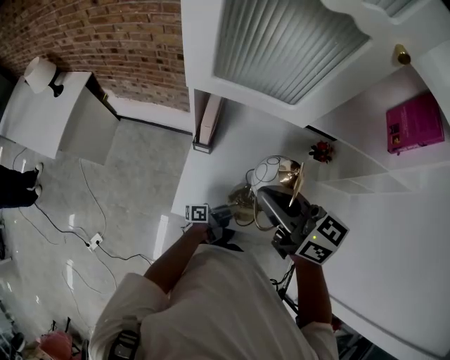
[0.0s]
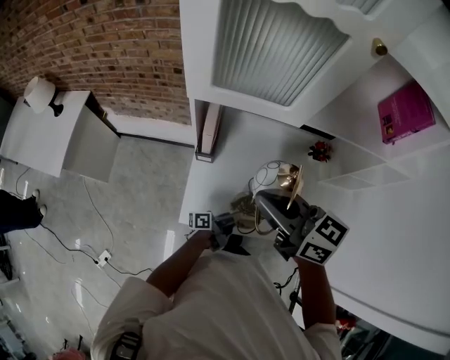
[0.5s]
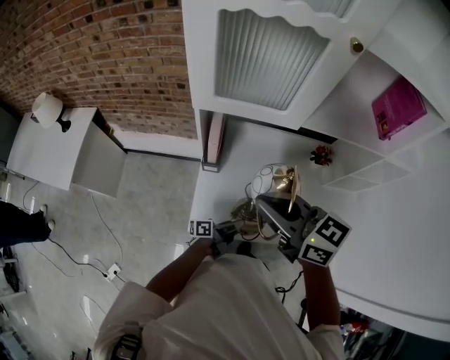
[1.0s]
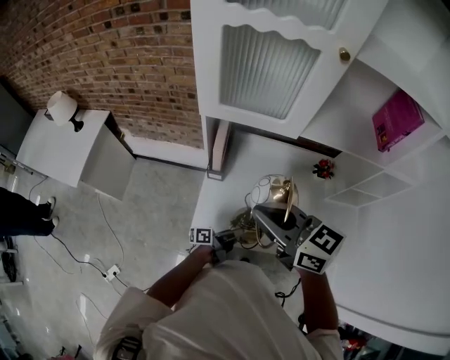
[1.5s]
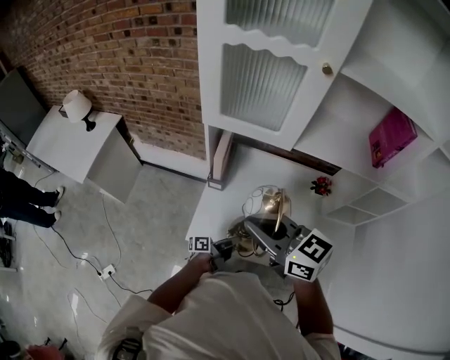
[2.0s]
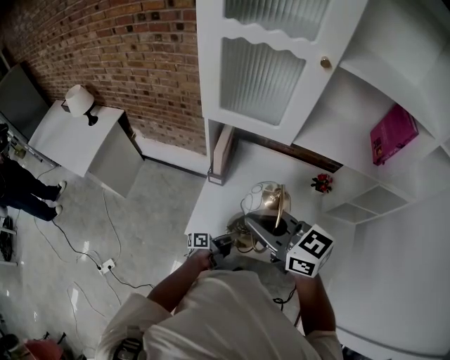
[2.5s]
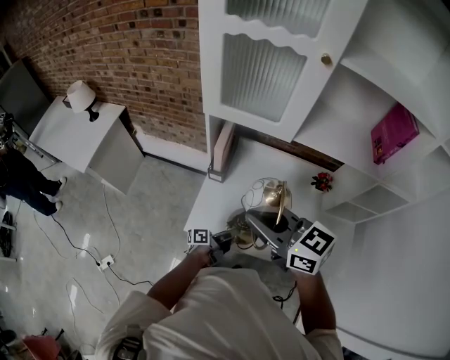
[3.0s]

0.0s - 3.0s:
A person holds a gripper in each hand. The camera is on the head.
0.0s - 1.5s: The left gripper shifts by some 5 cm; the right gripper moves backward, approximately 5 cm.
1.5s - 3.0s: The grippers stay close to where they were, moving slightly.

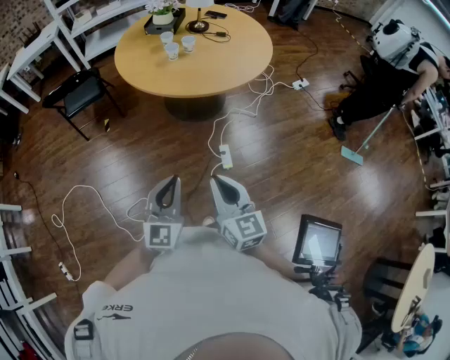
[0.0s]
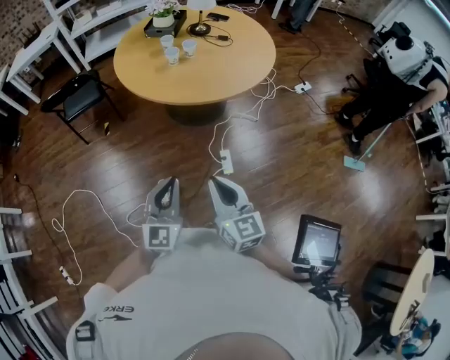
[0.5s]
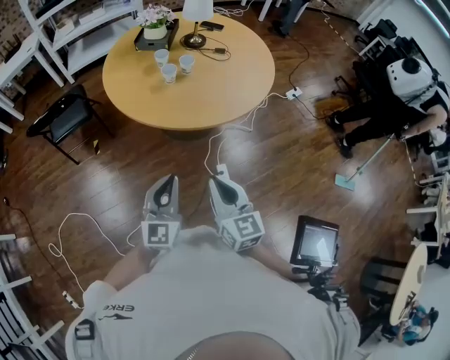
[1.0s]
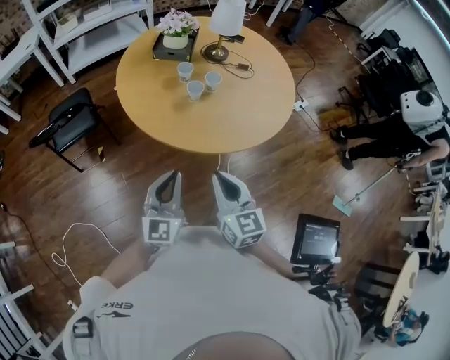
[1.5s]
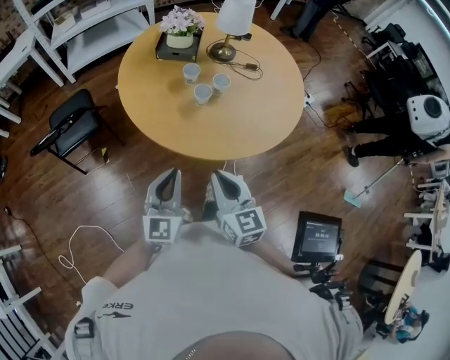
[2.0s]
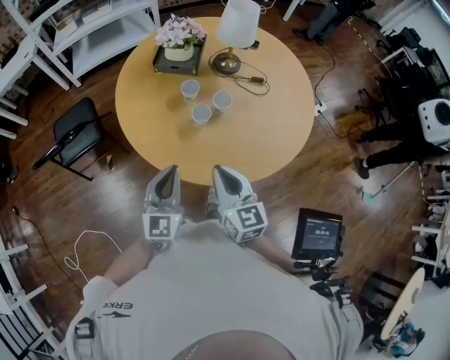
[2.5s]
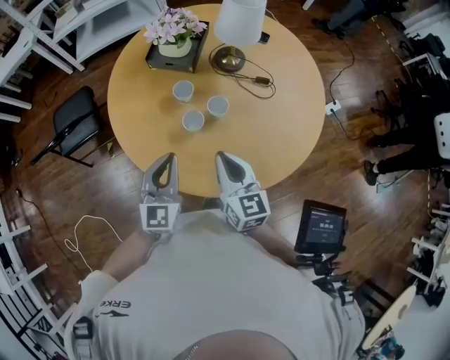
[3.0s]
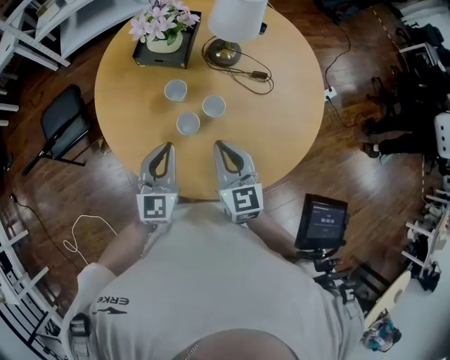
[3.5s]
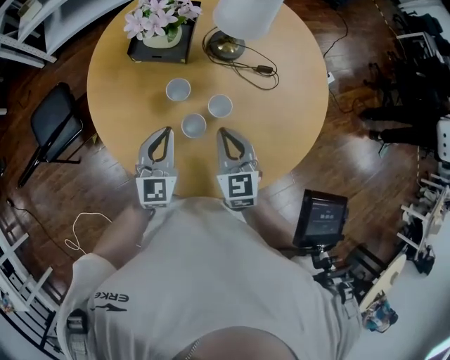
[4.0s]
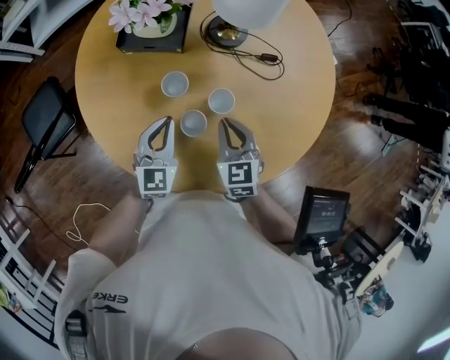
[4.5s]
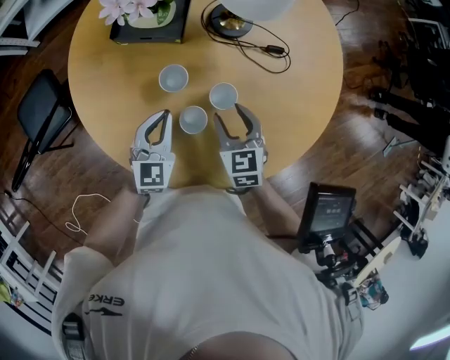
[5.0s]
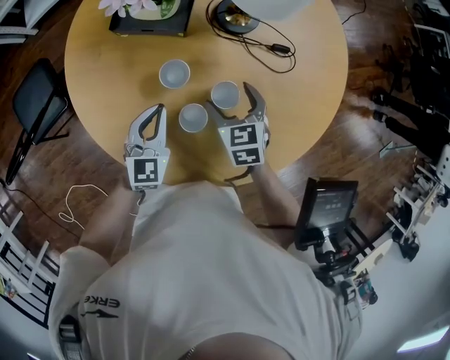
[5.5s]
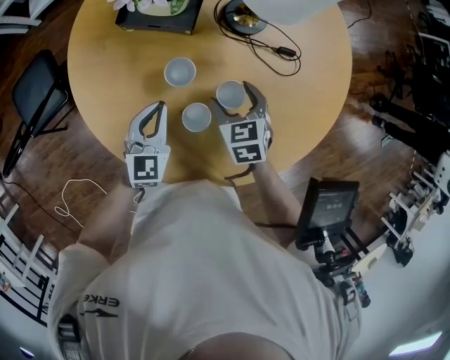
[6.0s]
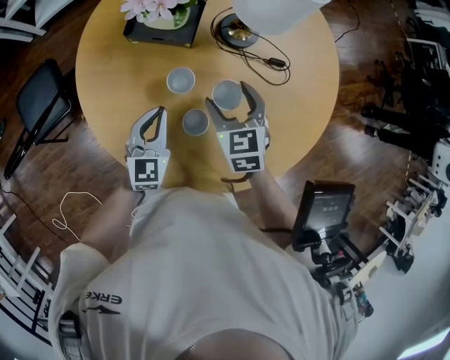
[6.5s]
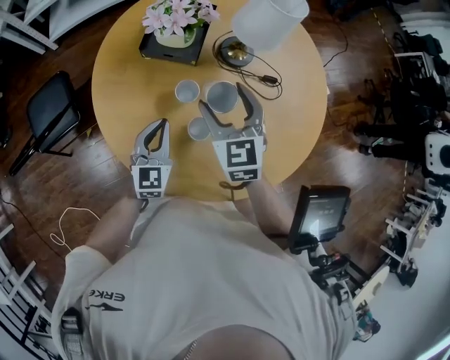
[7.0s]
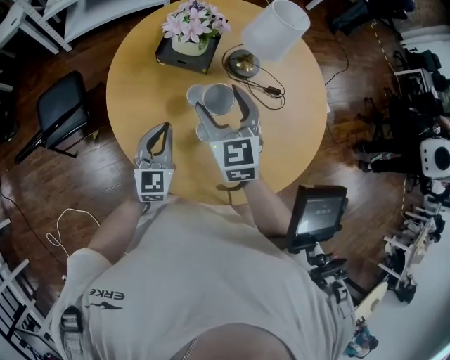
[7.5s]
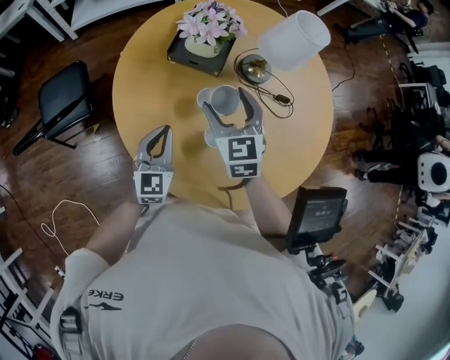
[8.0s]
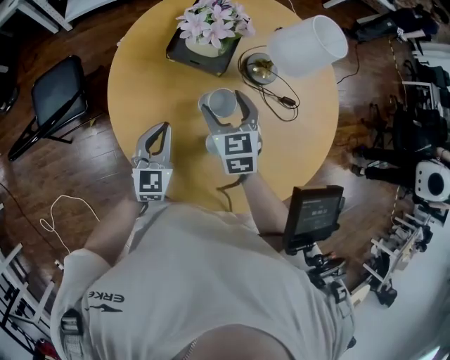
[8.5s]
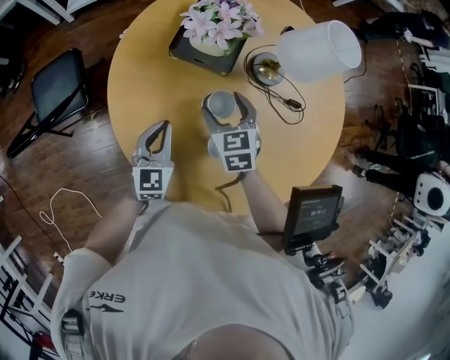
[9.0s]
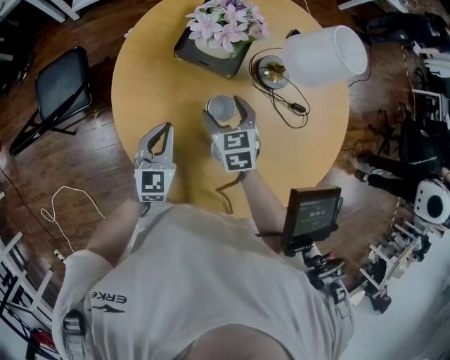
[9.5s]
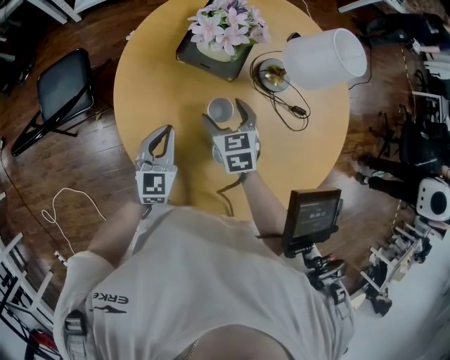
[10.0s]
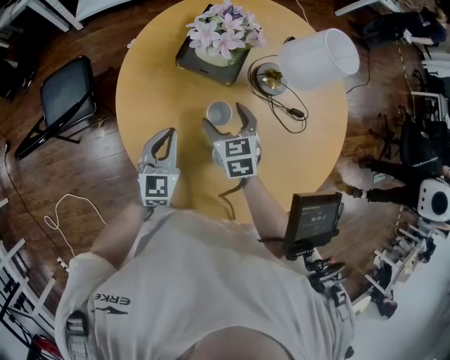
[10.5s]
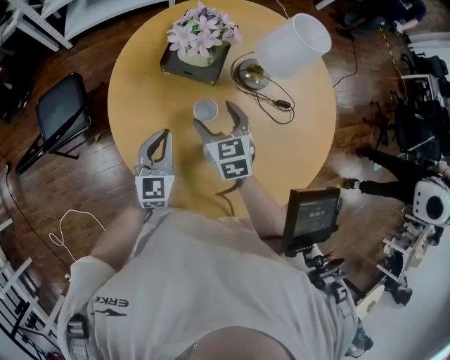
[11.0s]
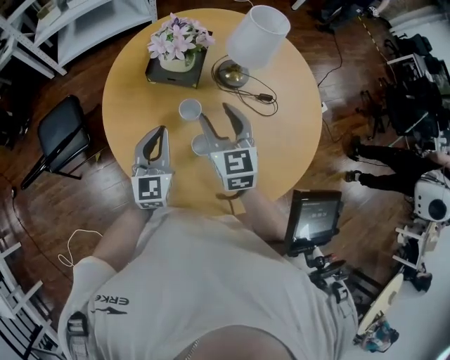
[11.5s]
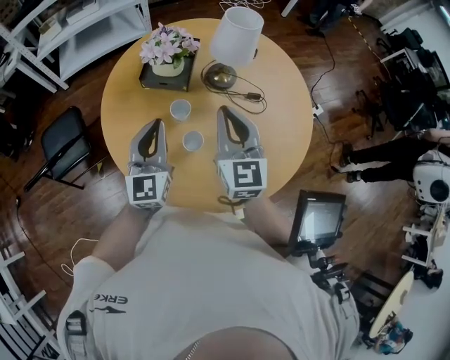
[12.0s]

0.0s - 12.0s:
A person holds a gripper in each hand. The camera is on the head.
0.0s - 2.0s: The two grippers travel together, forward and to the left, roughly 40 cm.
2.0s - 4.0s: Both grippers travel together forward, about 30 cm. The right gripper rotates roughly 20 degrees.
4.0s - 6.0s: The right gripper goes about 15 cm downward and forward, turns by roughly 20 degrees, and opens up; the left gripper heads downward, covering approximately 10 cm.
6.0s - 8.0s: The left gripper shifts roughly 10 cm upward and to the left, while the right gripper is displaced upward and to the left by some 20 cm, and rotates some 30 degrees.
8.0s - 10.0s: The right gripper goes some 15 cm downward, and rotates some 20 degrees; the left gripper heads downward, covering approximately 5 cm.
10.0s - 12.0s: The right gripper goes approximately 25 cm upward and backward, points its fingers roughly 40 degrees further upward, and closes its fingers, while the left gripper heads upward, covering some 20 cm, and rotates about 20 degrees.

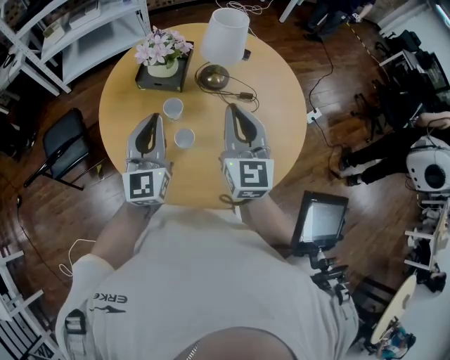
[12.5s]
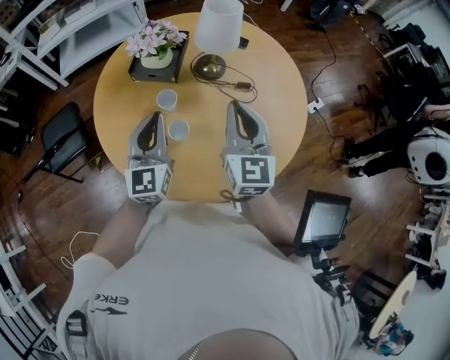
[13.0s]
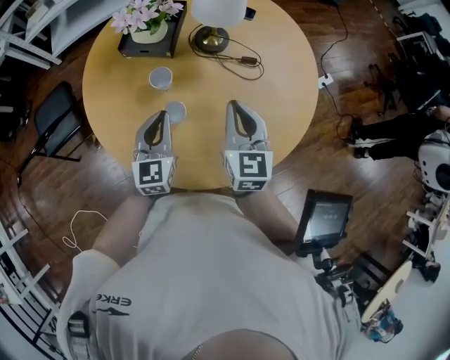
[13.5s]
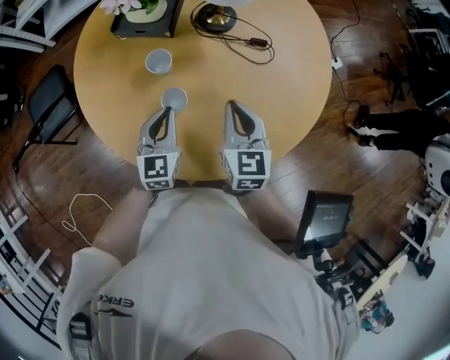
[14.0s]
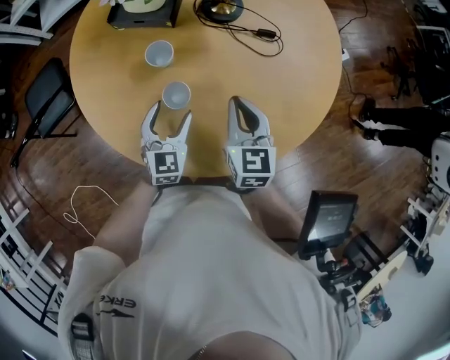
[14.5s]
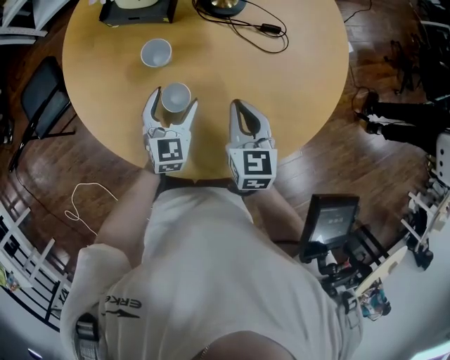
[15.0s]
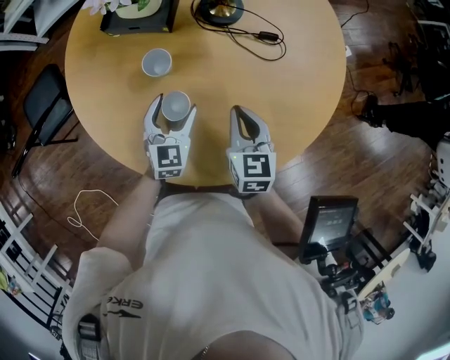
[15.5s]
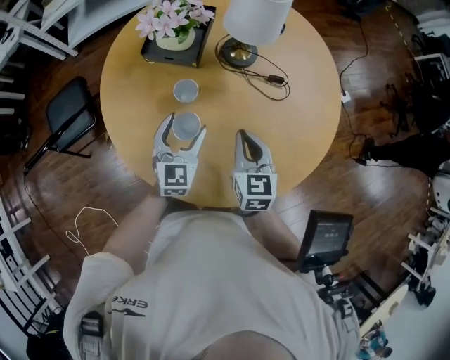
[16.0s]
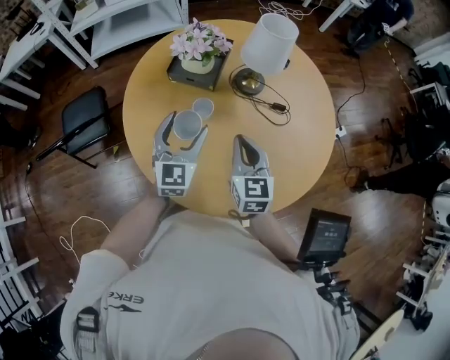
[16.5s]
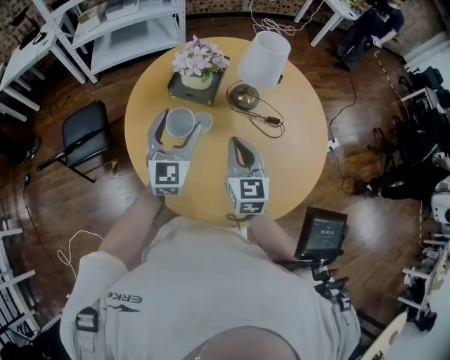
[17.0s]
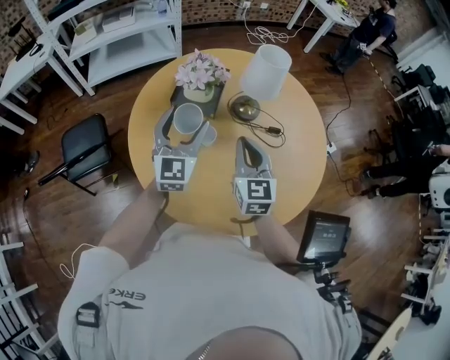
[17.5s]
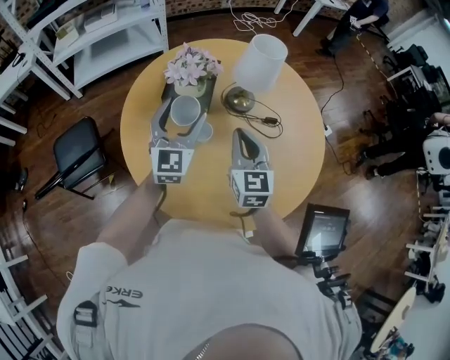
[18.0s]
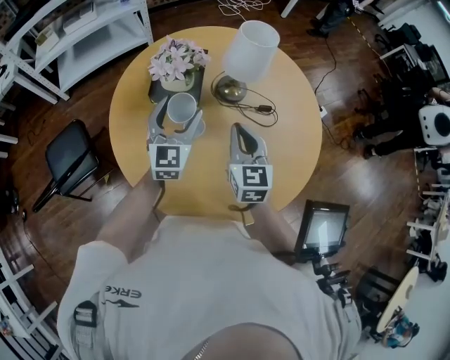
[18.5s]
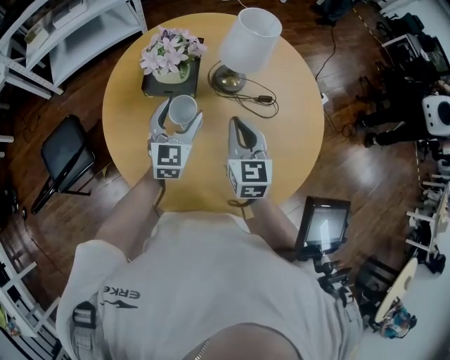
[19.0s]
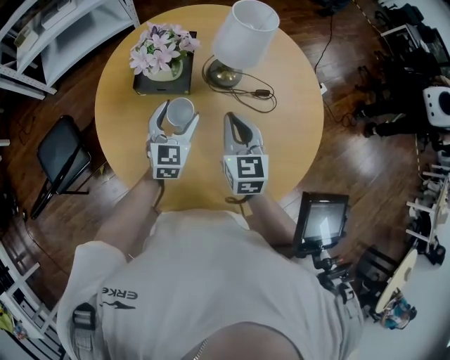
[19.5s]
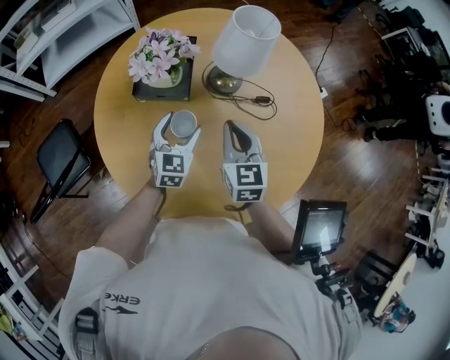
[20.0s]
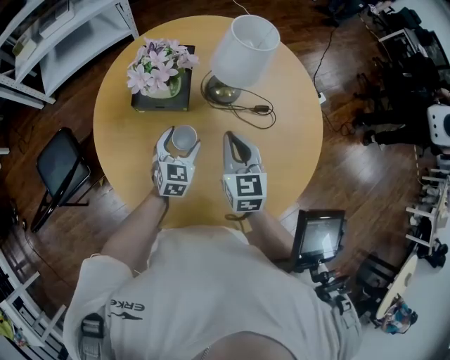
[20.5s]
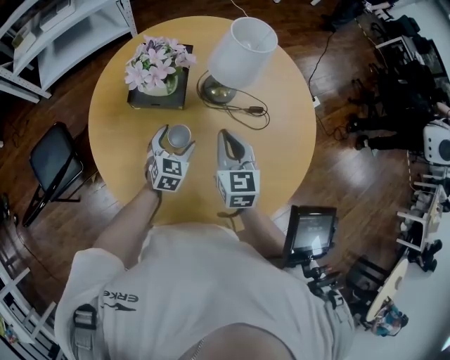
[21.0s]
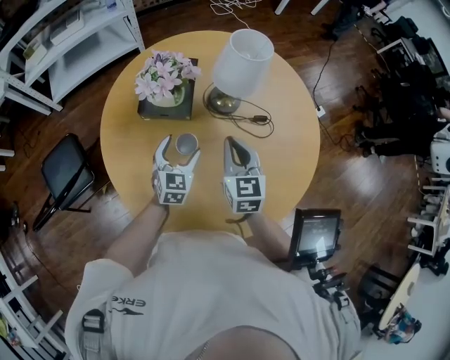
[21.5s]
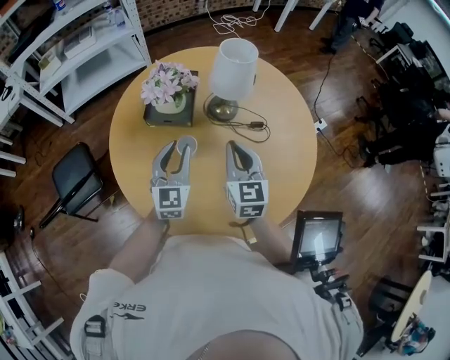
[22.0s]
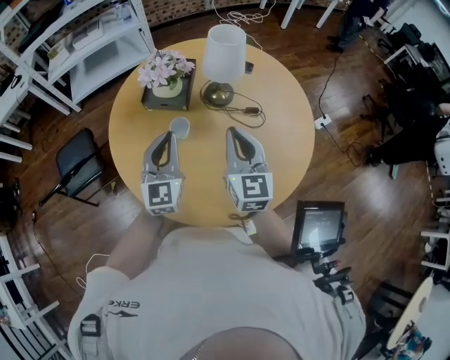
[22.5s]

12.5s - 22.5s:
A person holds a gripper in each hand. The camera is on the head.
12.5s - 14.5s: The two grippers go roughly 25 cm downward. The right gripper rotates roughly 30 degrees. The left gripper angles its fingers downward, by roughly 30 degrees, and opens its fingers.
14.5s - 16.5s: The left gripper goes some 15 cm upward, while the right gripper heads upward and to the left, covering about 10 cm.
16.5s - 18.5s: The right gripper shifts approximately 5 cm forward, while the left gripper is displaced forward by some 10 cm.
18.5s - 20.5s: The left gripper goes some 20 cm downward, and turns by about 30 degrees. The right gripper heads downward, covering approximately 5 cm.
20.5s - 22.5s: The left gripper goes roughly 25 cm upward and backward, rotates approximately 30 degrees, and closes up, while the right gripper goes approximately 15 cm upward and backward, and rotates roughly 20 degrees.

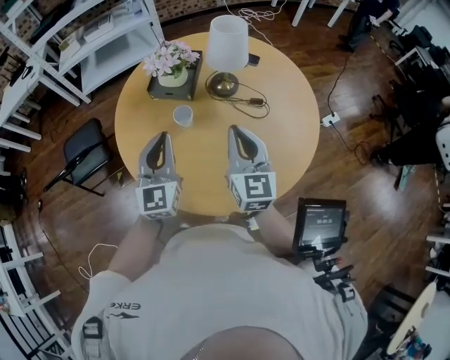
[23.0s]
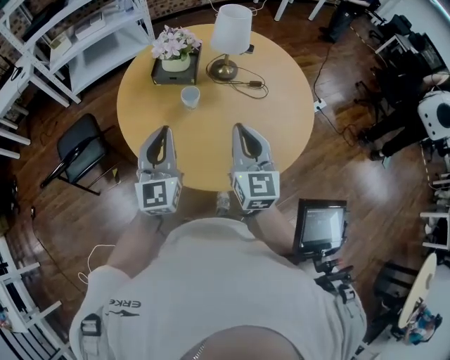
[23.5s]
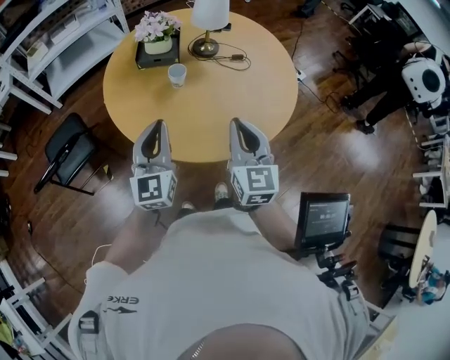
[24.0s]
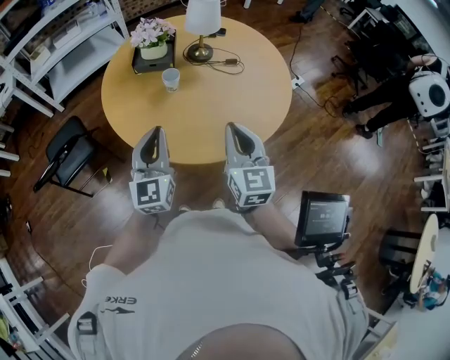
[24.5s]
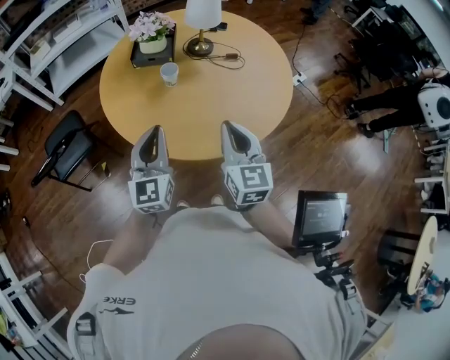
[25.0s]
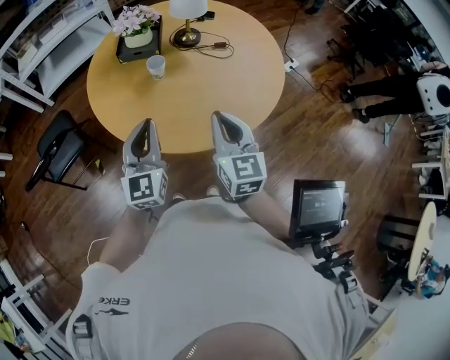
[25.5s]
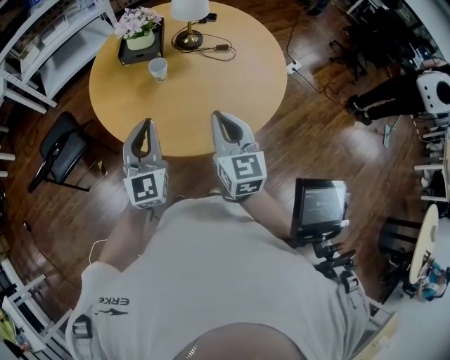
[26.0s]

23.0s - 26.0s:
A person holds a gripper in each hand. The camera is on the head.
23.0s - 24.5s: The grippers both shift backward by roughly 20 cm.
24.5s - 26.0s: The grippers stay close to where they were, moving slightly.
